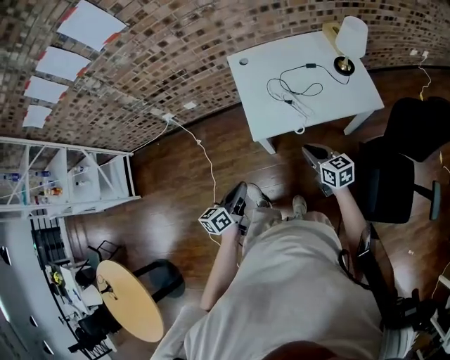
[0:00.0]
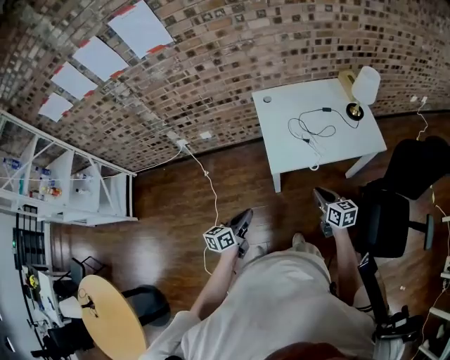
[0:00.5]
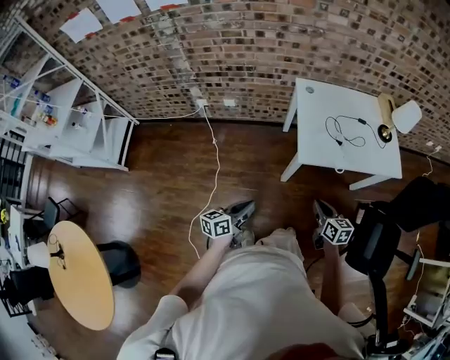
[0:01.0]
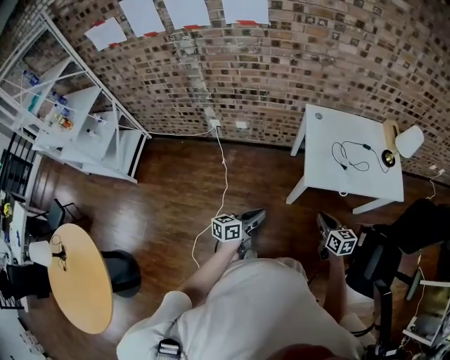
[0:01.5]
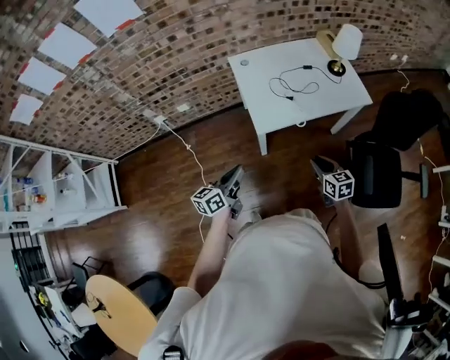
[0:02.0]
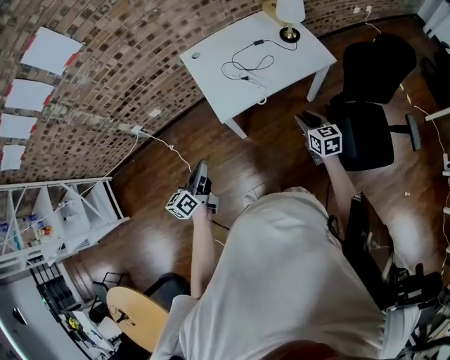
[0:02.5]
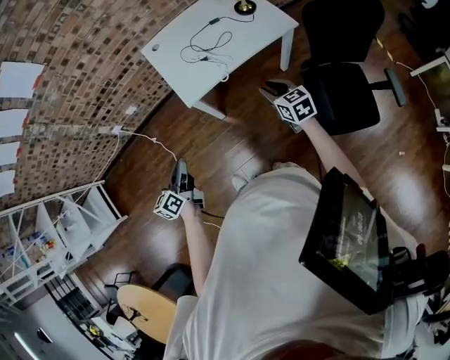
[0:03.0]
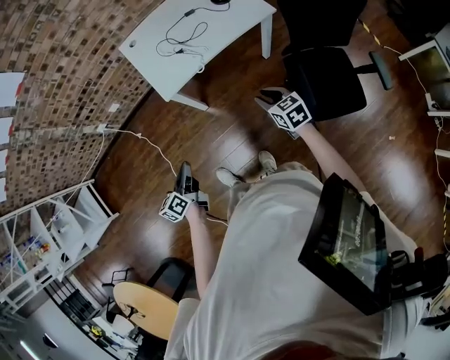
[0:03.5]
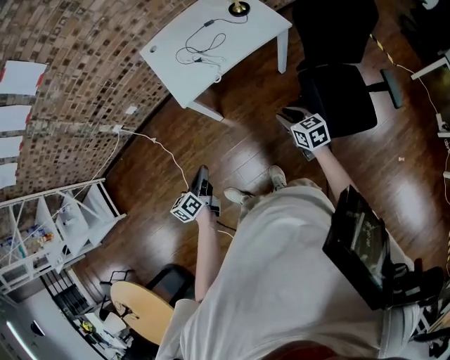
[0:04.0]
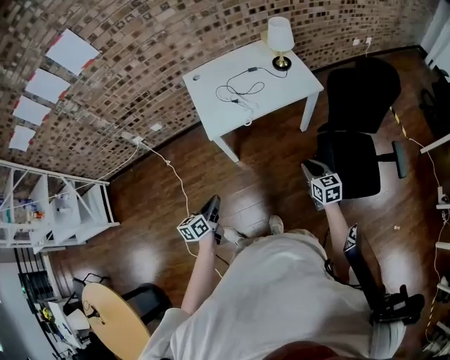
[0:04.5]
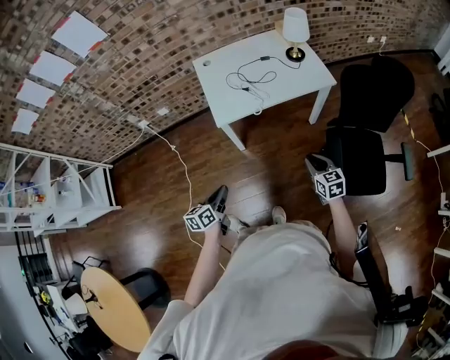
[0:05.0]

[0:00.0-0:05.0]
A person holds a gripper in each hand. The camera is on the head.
0:00.0 to 0:02.5: The right gripper travels backward by about 5 cm, goes to the left and returns, roughly 20 cm each way, turns by approximately 30 degrees, and opens up, while the left gripper is displaced upward by some 5 cm, and goes to the left and returns, roughly 20 cm each way.
0:02.5 to 0:05.0: The left gripper heads backward, to the right and downward, covering approximately 20 cm. The right gripper moves backward and to the right, some 15 cm.

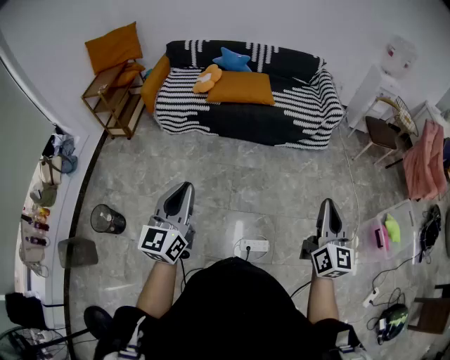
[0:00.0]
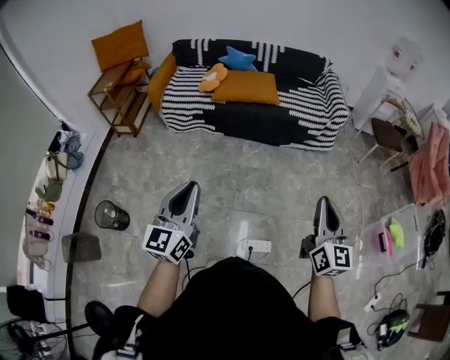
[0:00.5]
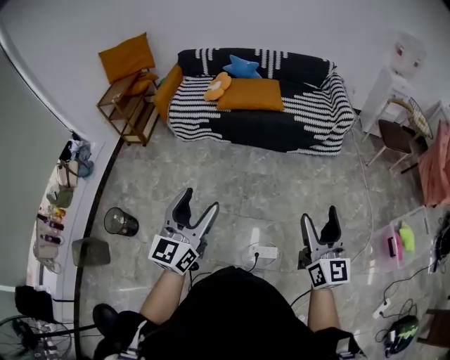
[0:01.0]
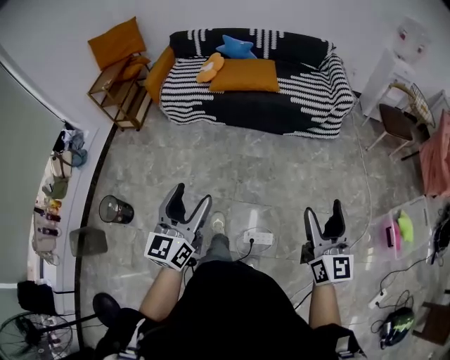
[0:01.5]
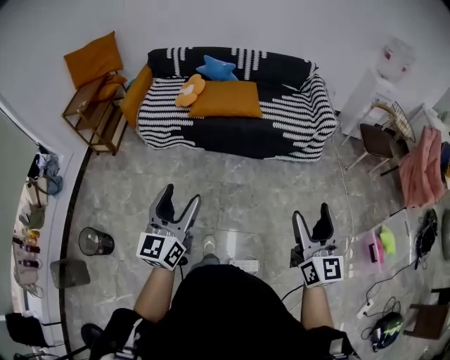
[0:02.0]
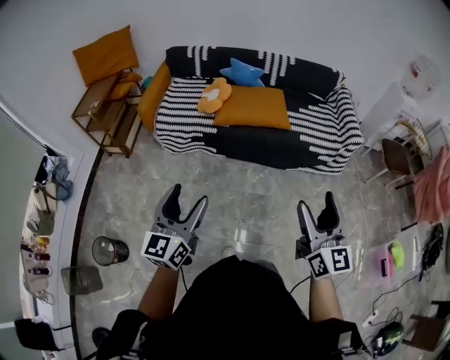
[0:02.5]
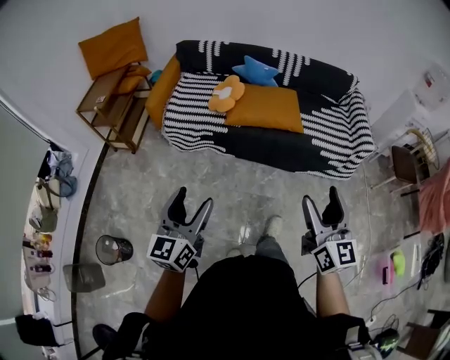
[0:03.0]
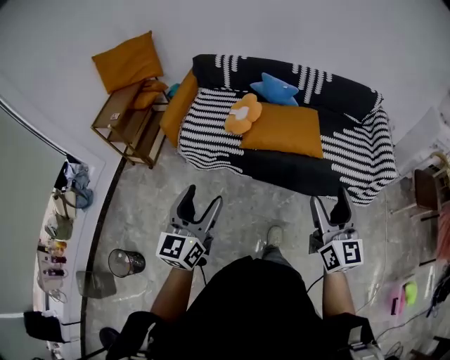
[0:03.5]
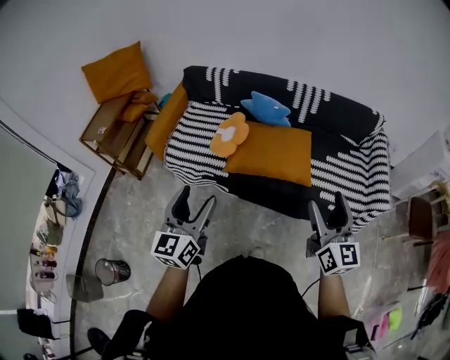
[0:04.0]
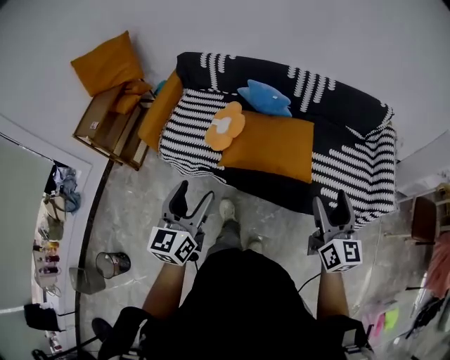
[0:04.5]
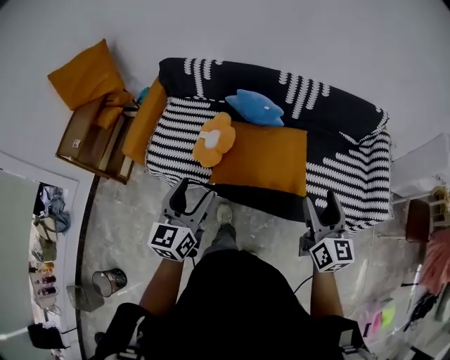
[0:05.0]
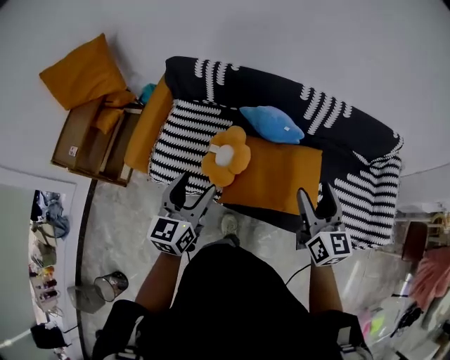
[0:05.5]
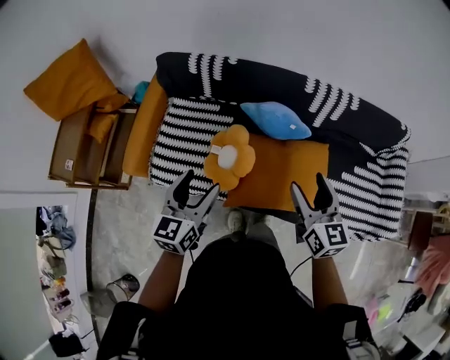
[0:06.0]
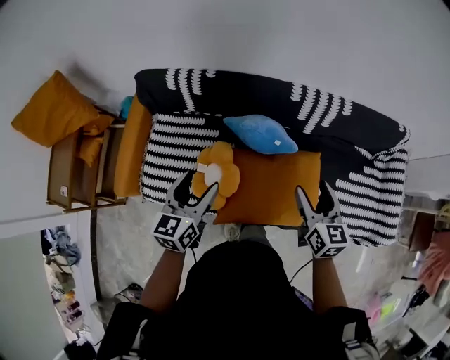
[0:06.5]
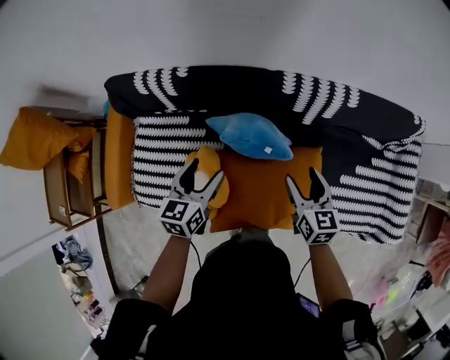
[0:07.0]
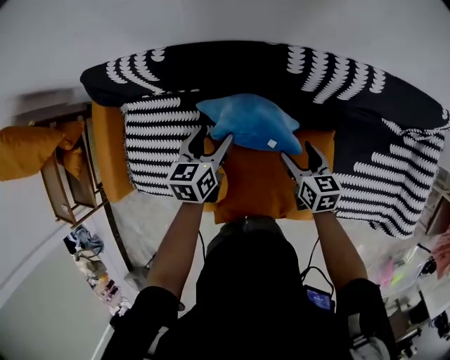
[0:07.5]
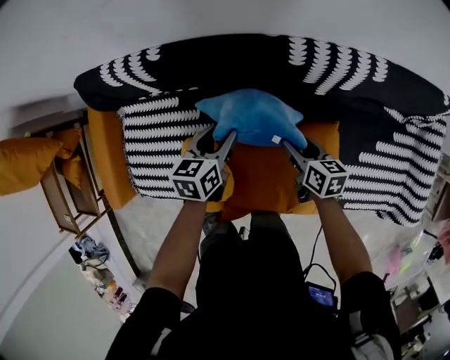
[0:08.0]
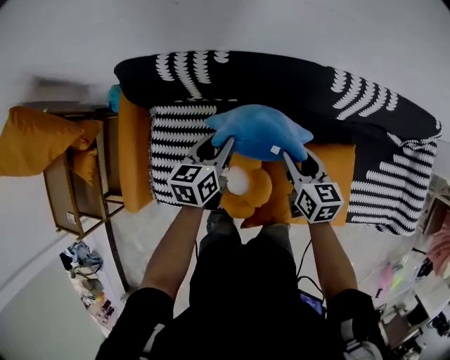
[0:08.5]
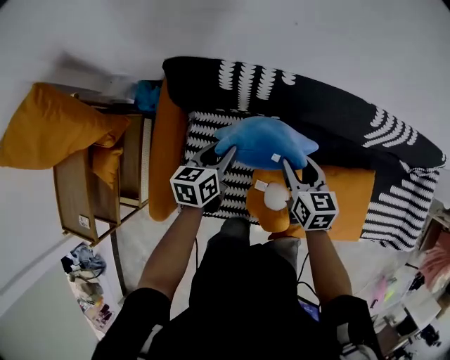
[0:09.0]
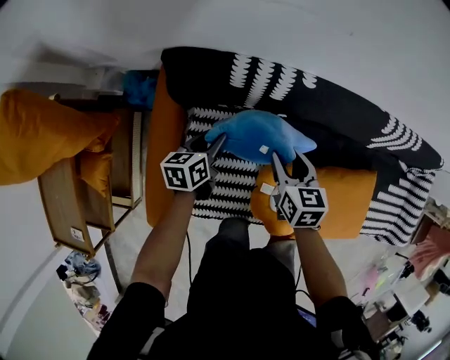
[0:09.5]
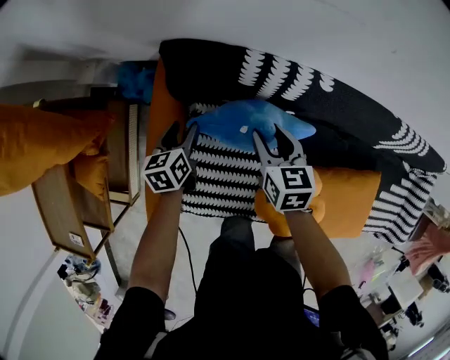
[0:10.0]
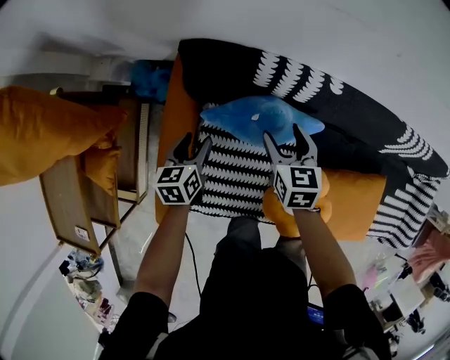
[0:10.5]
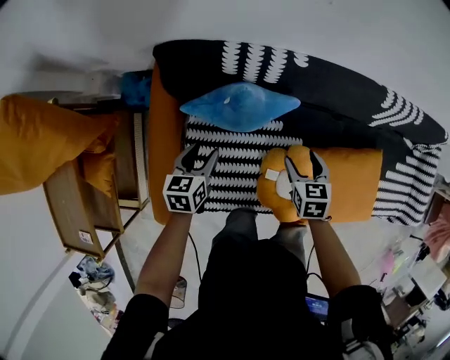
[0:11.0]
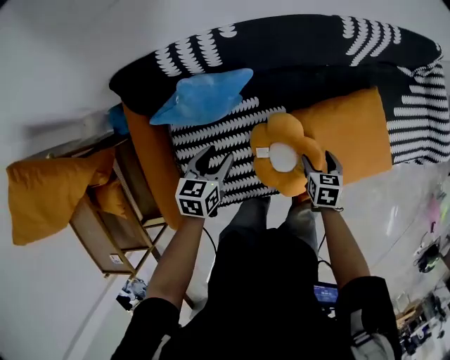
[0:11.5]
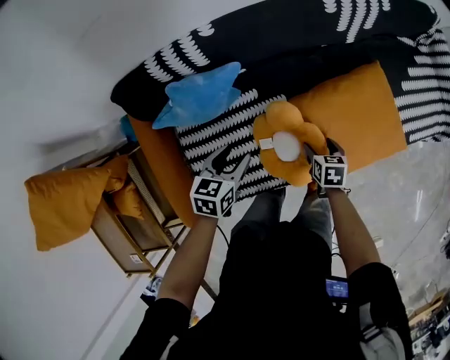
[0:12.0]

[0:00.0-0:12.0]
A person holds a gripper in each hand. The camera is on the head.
0:00.0 to 0:02.0: The grippers both shift forward by about 15 cm. The right gripper opens up; the left gripper opens.
0:02.0 to 0:04.0: The two grippers travel together, forward, about 50 cm.
0:04.0 to 0:06.0: The two grippers go about 40 cm forward.
0:06.0 to 0:08.0: The left gripper is displaced forward, downward and to the right by roughly 40 cm, and swivels roughly 30 degrees. The right gripper travels downward and forward by about 40 cm, and rotates roughly 40 degrees.
0:08.0 to 0:10.0: The pair of grippers is taken to the left, about 50 cm. The right gripper rotates roughly 30 degrees; the left gripper swivels approximately 20 degrees.
0:10.0 to 0:12.0: The right gripper ends up about 40 cm from where it was, and rotates roughly 40 degrees. Meanwhile the left gripper moves about 35 cm, and turns by roughly 50 degrees.

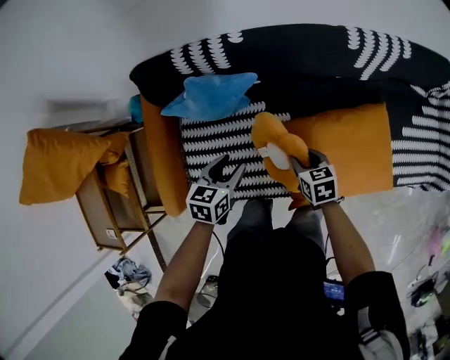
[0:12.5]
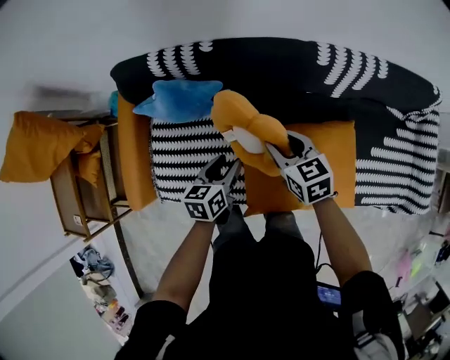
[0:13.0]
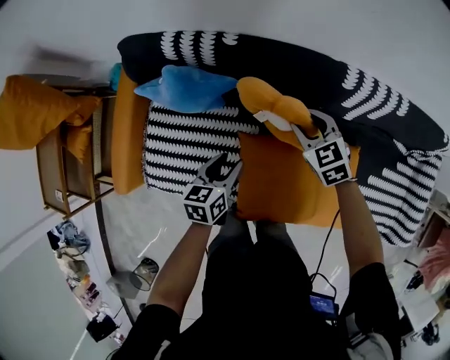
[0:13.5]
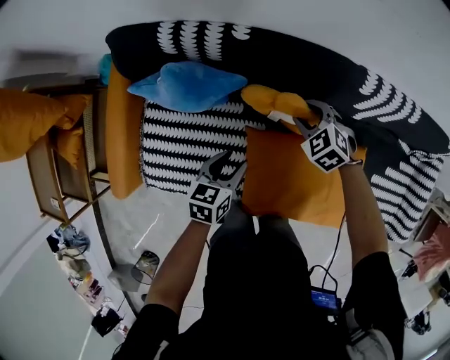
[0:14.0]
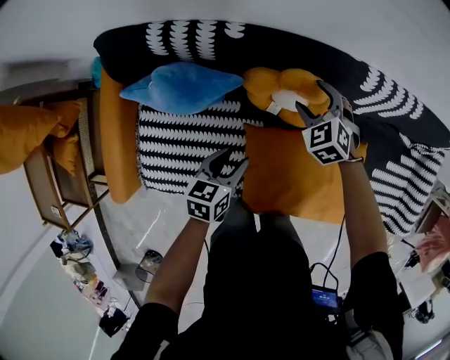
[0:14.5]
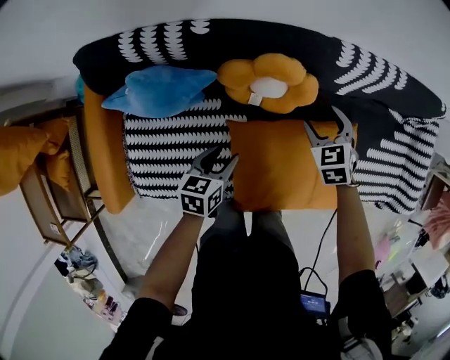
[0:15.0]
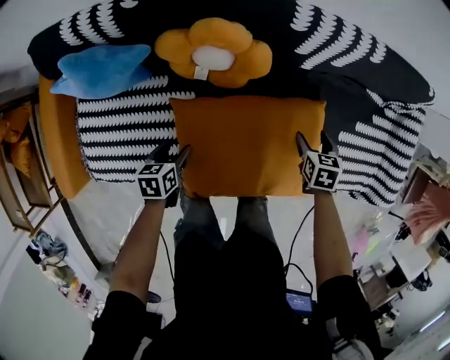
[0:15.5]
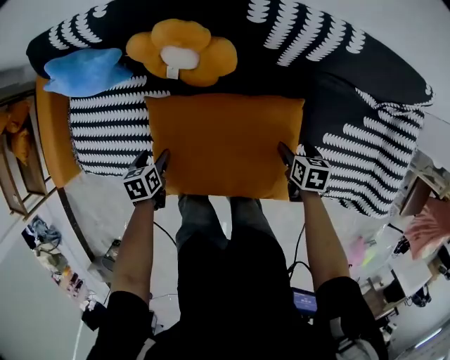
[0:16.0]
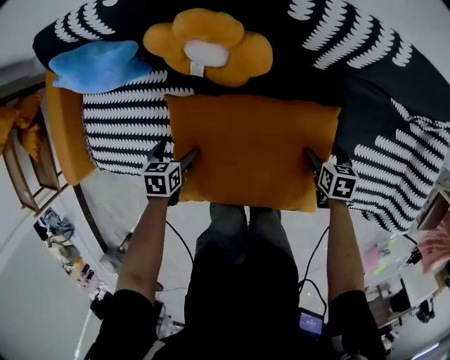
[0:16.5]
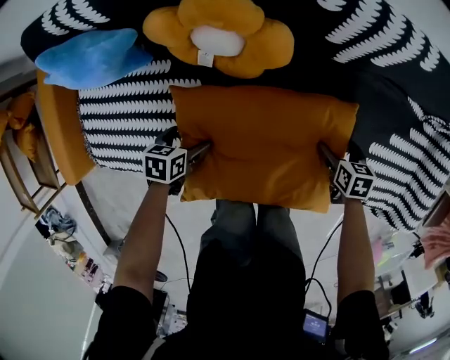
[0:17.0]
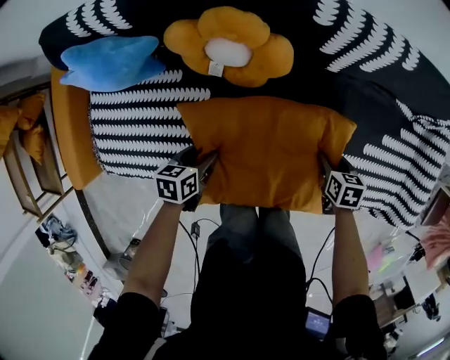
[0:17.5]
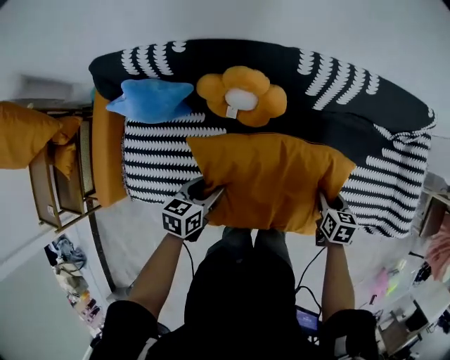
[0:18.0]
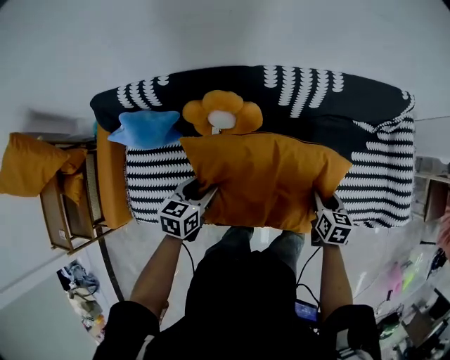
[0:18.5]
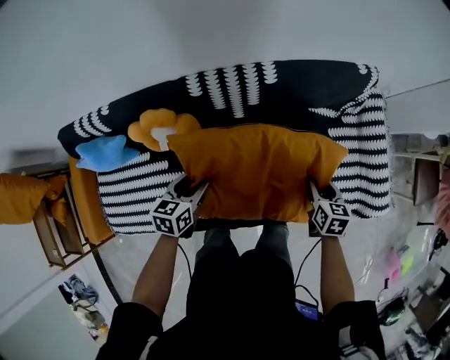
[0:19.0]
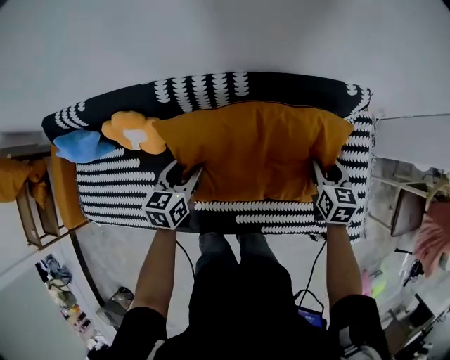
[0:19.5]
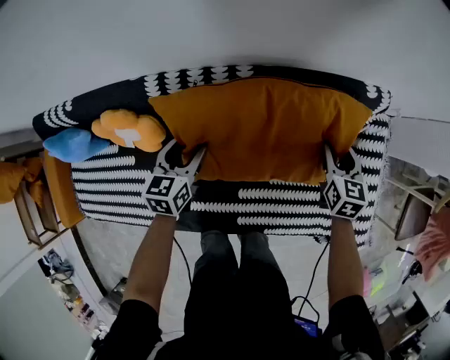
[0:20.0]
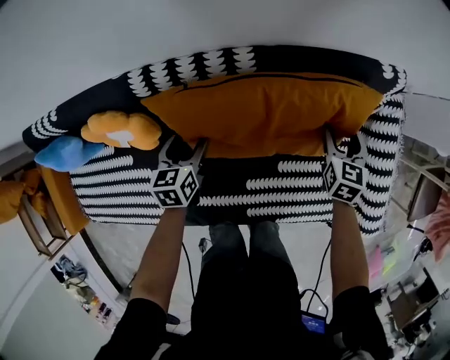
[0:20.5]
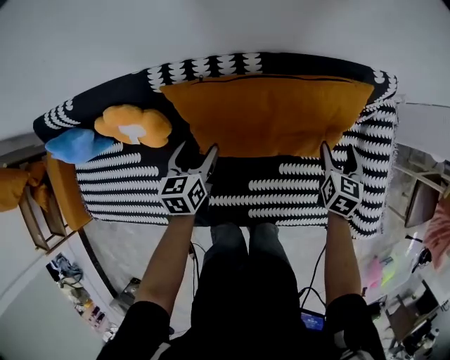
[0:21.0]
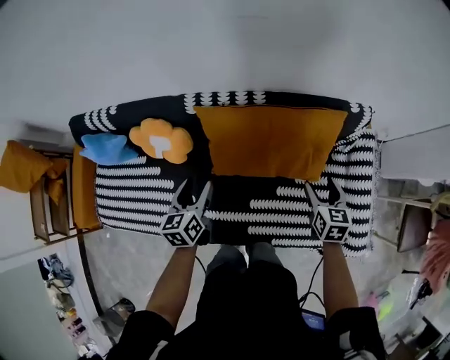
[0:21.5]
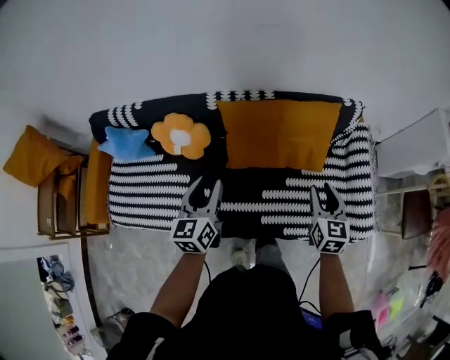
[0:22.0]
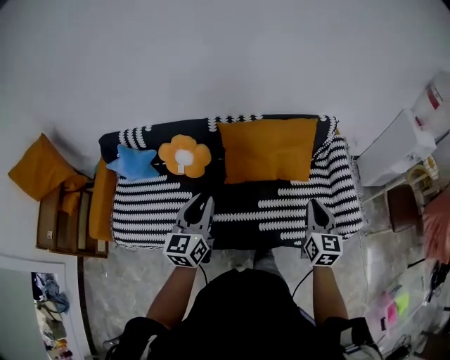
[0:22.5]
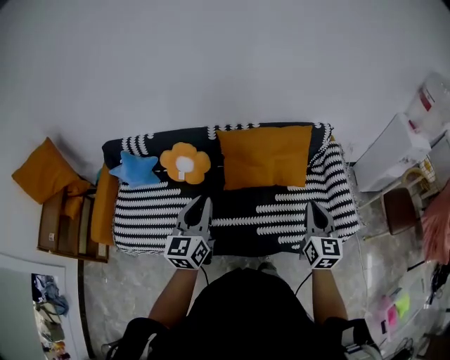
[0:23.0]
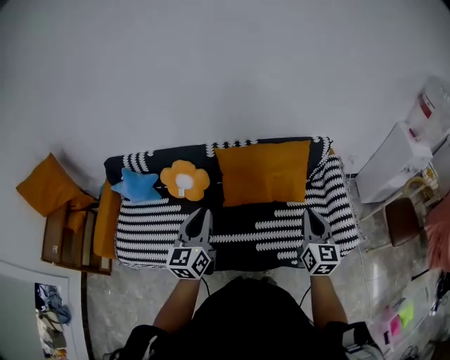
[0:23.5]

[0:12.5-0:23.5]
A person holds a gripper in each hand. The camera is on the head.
0:12.5 to 0:14.5: The left gripper shifts roughly 15 cm to the right, downward and forward; the right gripper moves forward, about 25 cm, twists roughly 60 degrees counterclockwise, seen from behind, and opens.
0:14.5 to 0:16.0: The right gripper moves roughly 40 cm, and twists roughly 60 degrees clockwise, seen from behind. The left gripper shifts by roughly 20 cm, and swivels approximately 30 degrees.
0:16.0 to 0:18.0: The right gripper shifts about 15 cm upward, backward and to the left, and closes its fingers; the left gripper is displaced upward by about 15 cm, and turns by roughly 30 degrees.
0:18.0 to 0:20.0: The pair of grippers is taken forward and to the right, some 40 cm. The right gripper changes its angle by roughly 20 degrees. Meanwhile the left gripper changes its angle by about 20 degrees.
0:20.0 to 0:21.5: The grippers both shift backward and upward by approximately 15 cm. The left gripper turns by approximately 20 degrees.
0:21.5 to 0:23.5: Both grippers move upward and backward, some 35 cm. The right gripper points its fingers approximately 30 degrees further upward, and closes; the left gripper swivels about 30 degrees, and closes its fingers.
